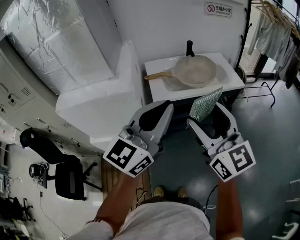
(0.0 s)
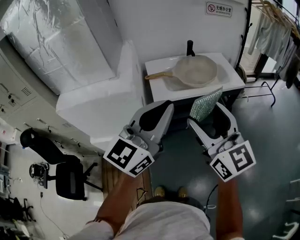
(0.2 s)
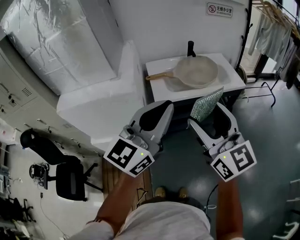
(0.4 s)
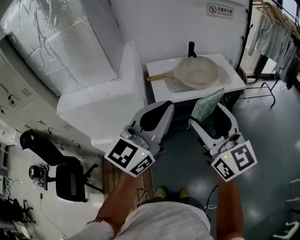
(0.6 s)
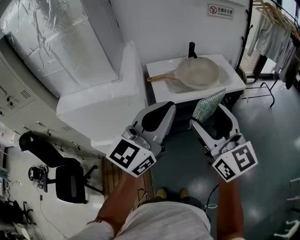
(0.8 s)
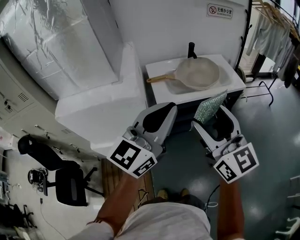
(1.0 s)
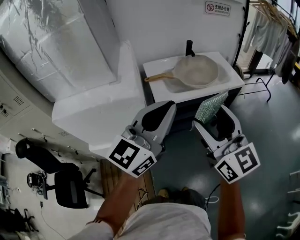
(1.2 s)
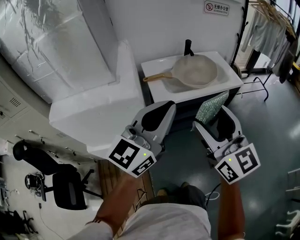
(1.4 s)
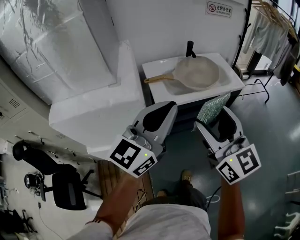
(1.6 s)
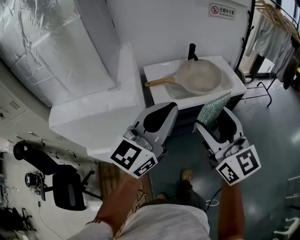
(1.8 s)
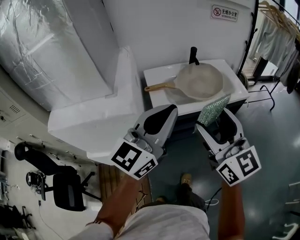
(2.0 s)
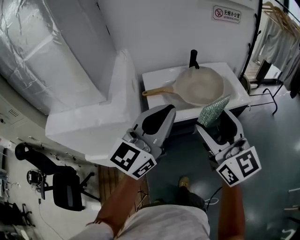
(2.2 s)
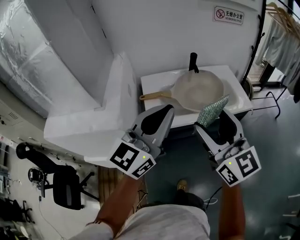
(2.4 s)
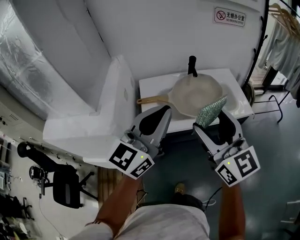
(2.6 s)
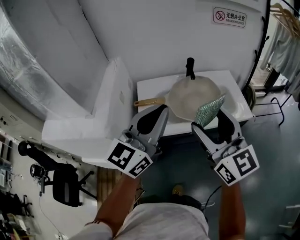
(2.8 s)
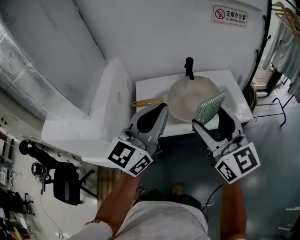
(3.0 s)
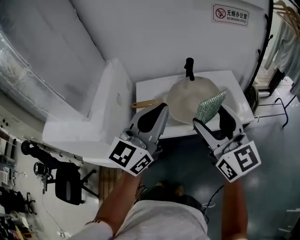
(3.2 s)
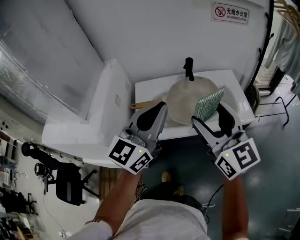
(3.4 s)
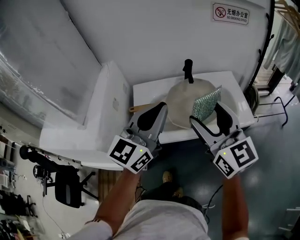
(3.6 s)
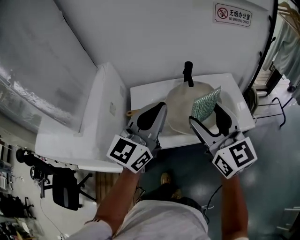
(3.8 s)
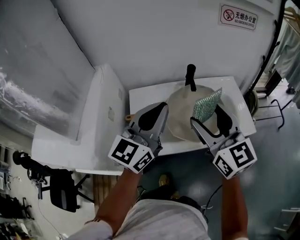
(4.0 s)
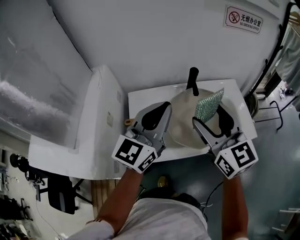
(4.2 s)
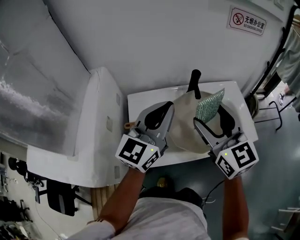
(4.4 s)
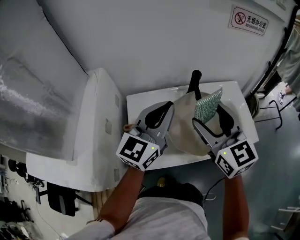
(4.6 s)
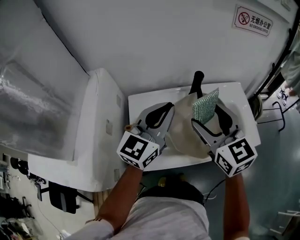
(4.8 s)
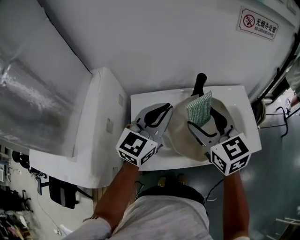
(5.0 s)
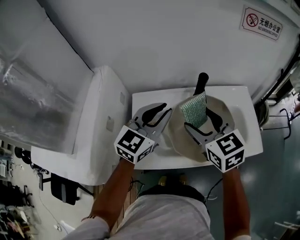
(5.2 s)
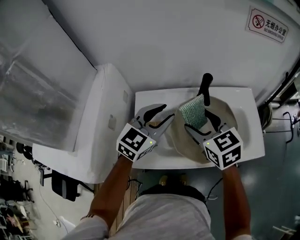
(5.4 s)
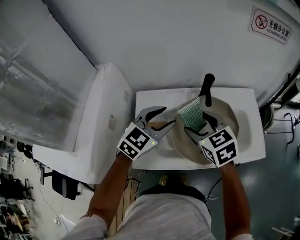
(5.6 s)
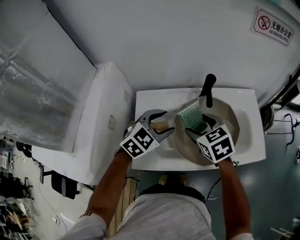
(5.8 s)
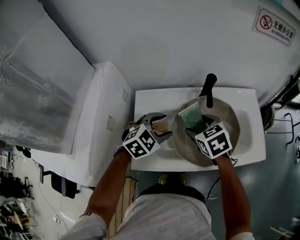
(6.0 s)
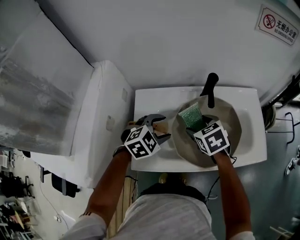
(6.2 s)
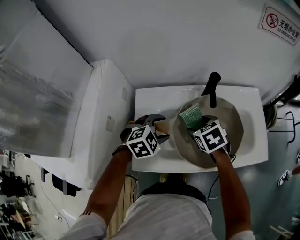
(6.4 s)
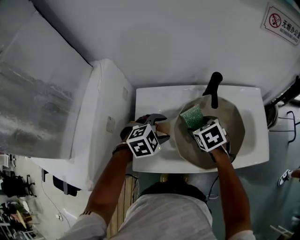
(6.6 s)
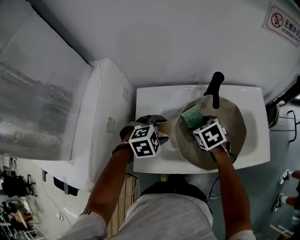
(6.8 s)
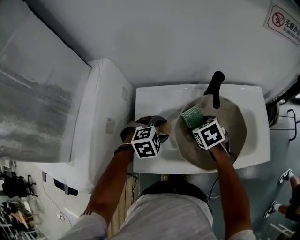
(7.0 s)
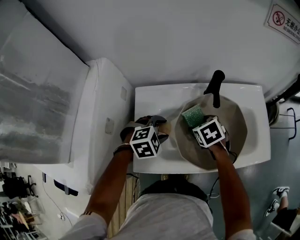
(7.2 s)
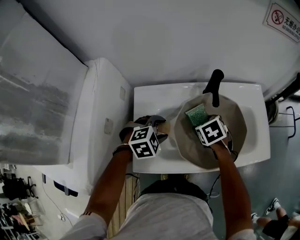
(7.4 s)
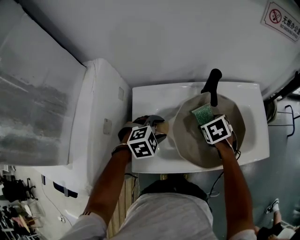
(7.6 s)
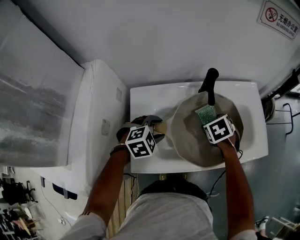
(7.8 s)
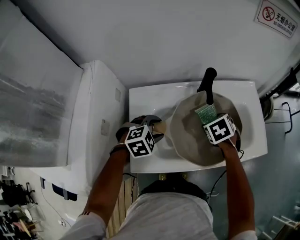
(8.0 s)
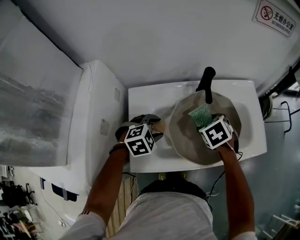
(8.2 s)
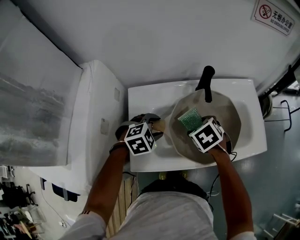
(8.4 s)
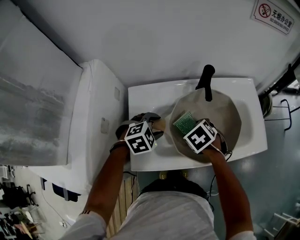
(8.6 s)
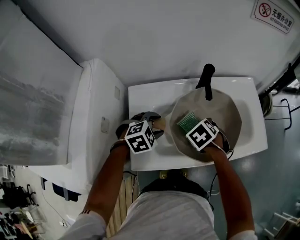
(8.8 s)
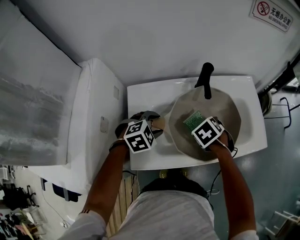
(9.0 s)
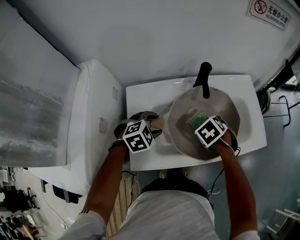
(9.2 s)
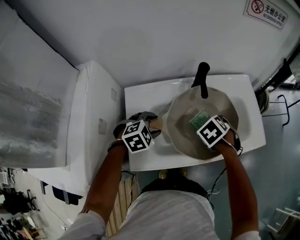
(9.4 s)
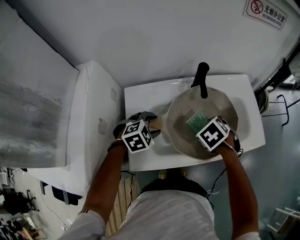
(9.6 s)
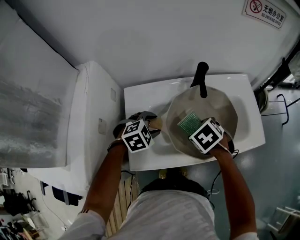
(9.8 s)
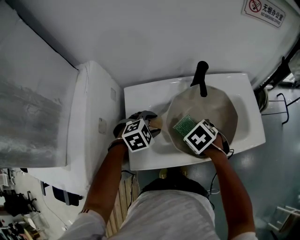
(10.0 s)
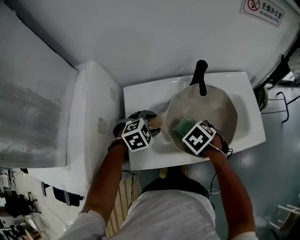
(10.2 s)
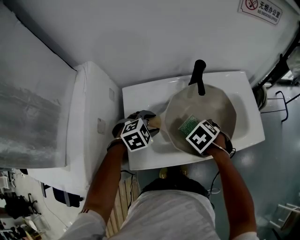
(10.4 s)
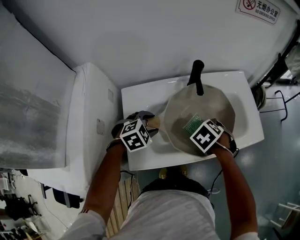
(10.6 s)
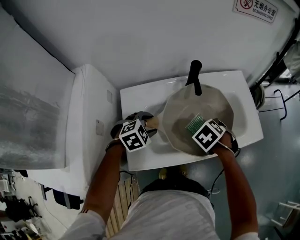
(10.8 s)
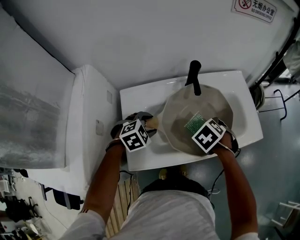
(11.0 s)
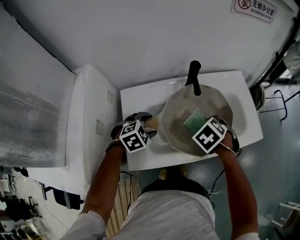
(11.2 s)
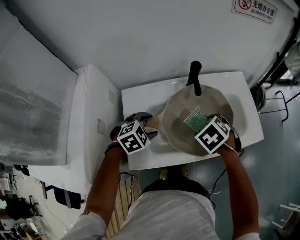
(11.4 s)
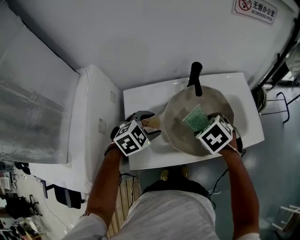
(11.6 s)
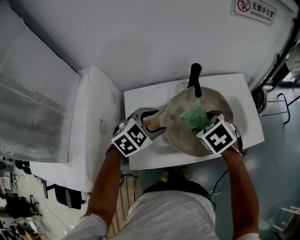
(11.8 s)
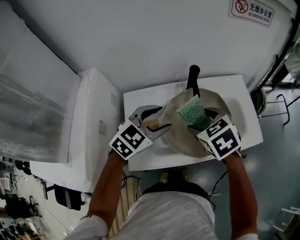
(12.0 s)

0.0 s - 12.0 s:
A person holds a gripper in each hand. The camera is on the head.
0.0 s - 1.6 s: The right gripper changes place by about 5 cm; the left gripper goes about 5 cm to the left and forward.
1.6 s - 3.0 s: The two grippers go roughly 25 cm forward and to the right.
3.0 s - 4.4 s: Both grippers move forward, some 20 cm.
4.4 s - 6.0 s: The right gripper moves downward and forward, about 20 cm, and points its fingers roughly 40 degrees further downward; the left gripper shifts about 20 cm downward, angles its fingers downward, by roughly 50 degrees, and opens its fingers.
6.0 s - 7.6 s: The left gripper is displaced downward by some 5 cm. The right gripper goes approximately 10 cm downward and to the right, and rotates some 20 degrees.
7.6 s - 9.0 s: The right gripper shifts by roughly 5 cm.
9.0 s - 10.4 s: There are only small adjustments of the grippers.
10.4 s - 12.0 s: The two grippers go about 15 cm upward. The right gripper changes its angle by some 30 degrees. Meanwhile the left gripper rotates about 30 degrees.

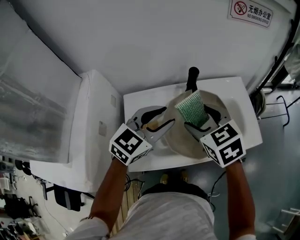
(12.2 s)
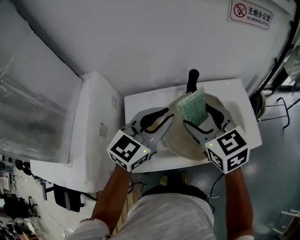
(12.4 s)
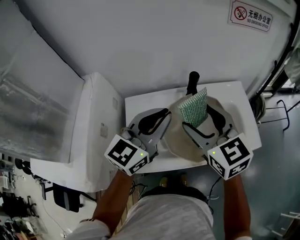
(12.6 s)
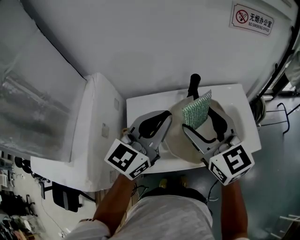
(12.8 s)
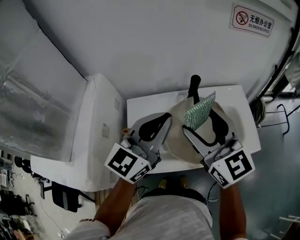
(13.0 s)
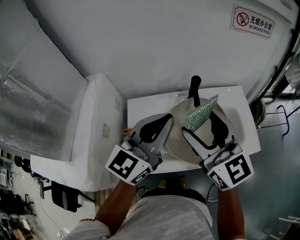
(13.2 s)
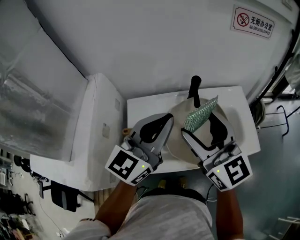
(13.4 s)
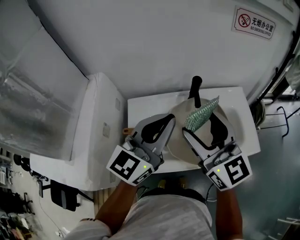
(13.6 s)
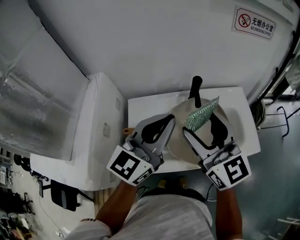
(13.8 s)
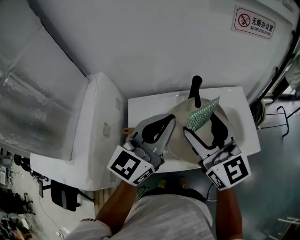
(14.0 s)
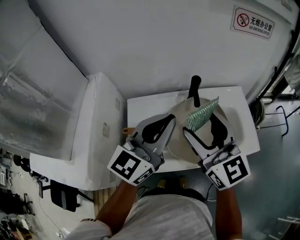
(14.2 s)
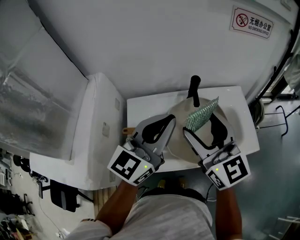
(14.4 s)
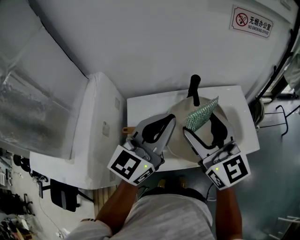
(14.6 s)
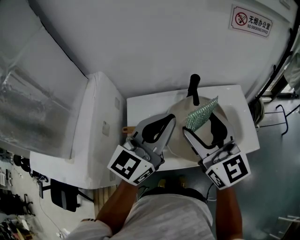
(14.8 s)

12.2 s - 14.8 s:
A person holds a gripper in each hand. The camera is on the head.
12.2 s - 13.4 s: Both grippers move upward, approximately 10 cm. The right gripper points its fingers roughly 40 degrees further upward. Meanwhile the left gripper rotates roughly 30 degrees, and closes.
13.4 s - 14.8 s: Neither gripper changes place.

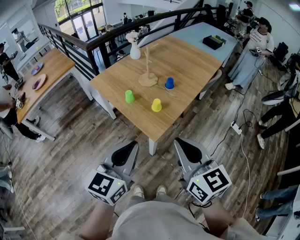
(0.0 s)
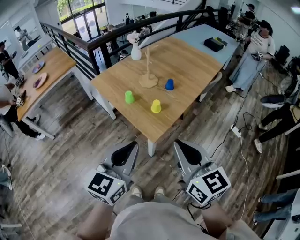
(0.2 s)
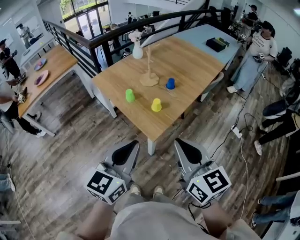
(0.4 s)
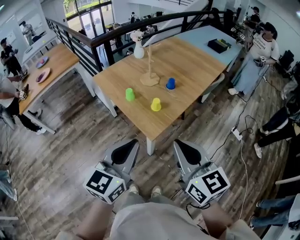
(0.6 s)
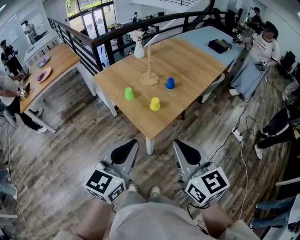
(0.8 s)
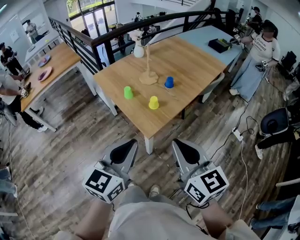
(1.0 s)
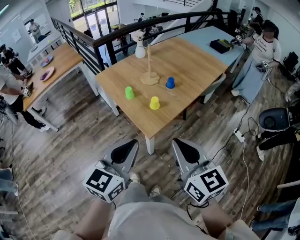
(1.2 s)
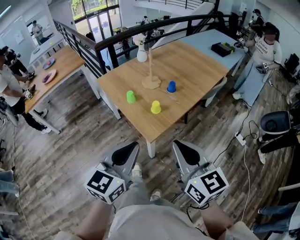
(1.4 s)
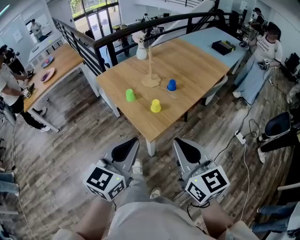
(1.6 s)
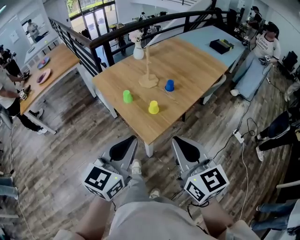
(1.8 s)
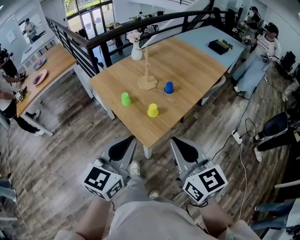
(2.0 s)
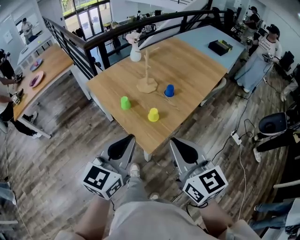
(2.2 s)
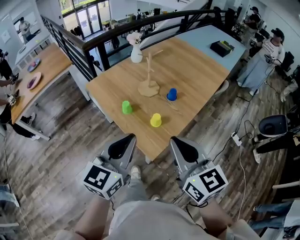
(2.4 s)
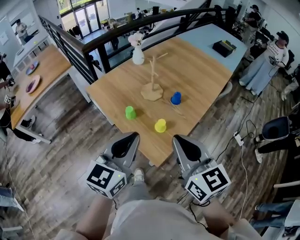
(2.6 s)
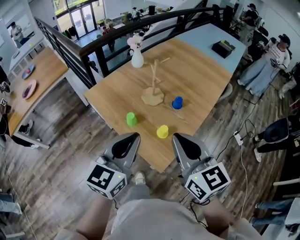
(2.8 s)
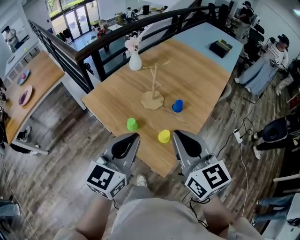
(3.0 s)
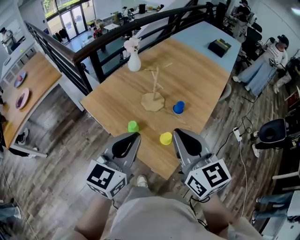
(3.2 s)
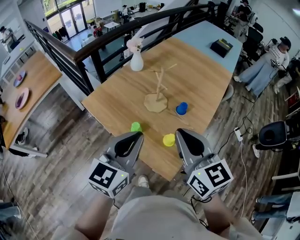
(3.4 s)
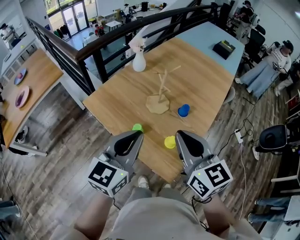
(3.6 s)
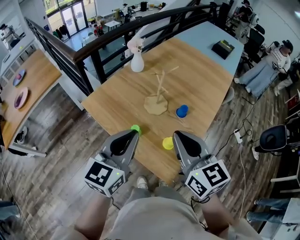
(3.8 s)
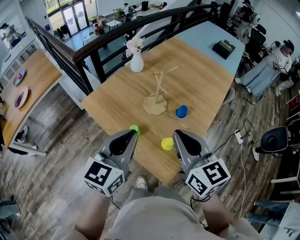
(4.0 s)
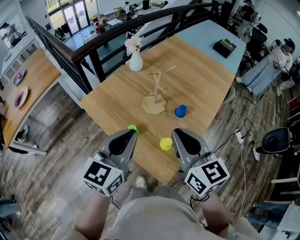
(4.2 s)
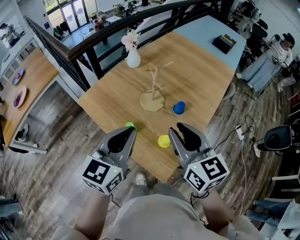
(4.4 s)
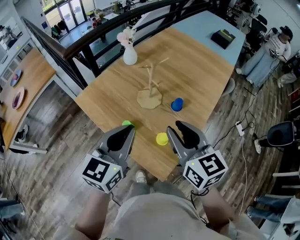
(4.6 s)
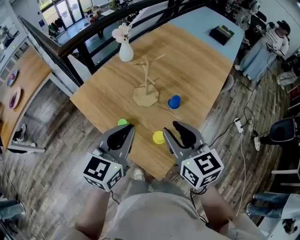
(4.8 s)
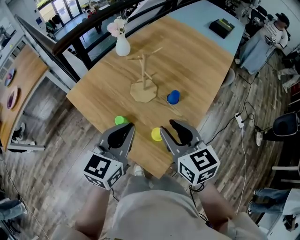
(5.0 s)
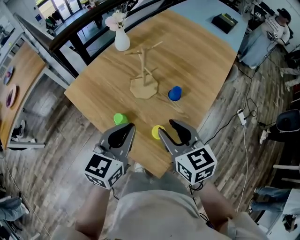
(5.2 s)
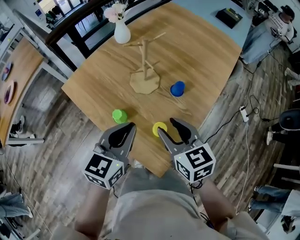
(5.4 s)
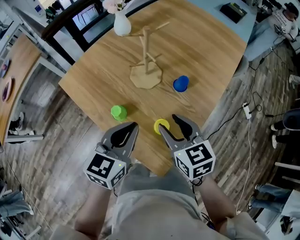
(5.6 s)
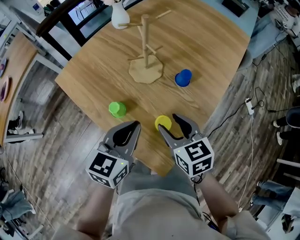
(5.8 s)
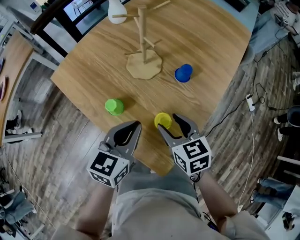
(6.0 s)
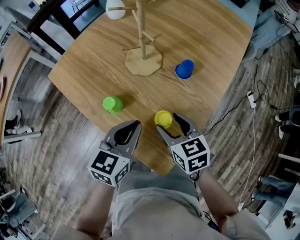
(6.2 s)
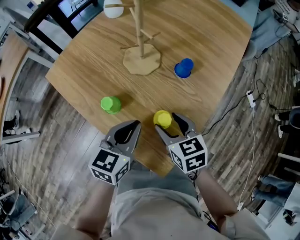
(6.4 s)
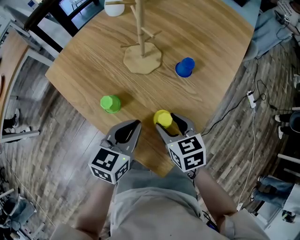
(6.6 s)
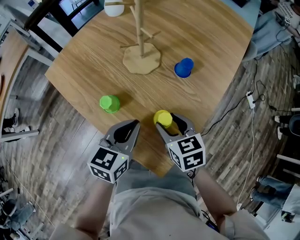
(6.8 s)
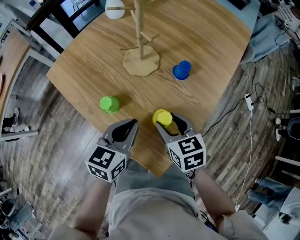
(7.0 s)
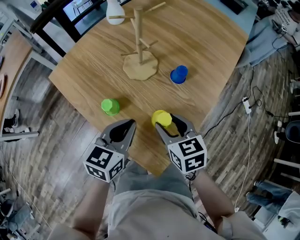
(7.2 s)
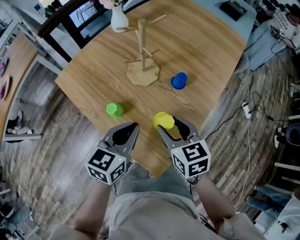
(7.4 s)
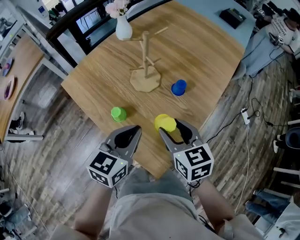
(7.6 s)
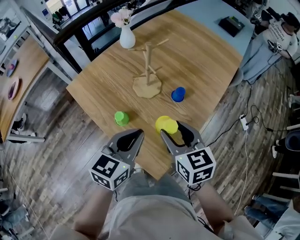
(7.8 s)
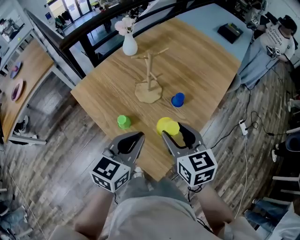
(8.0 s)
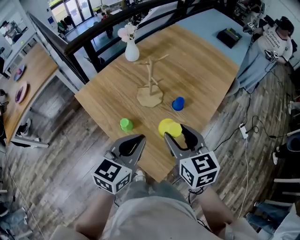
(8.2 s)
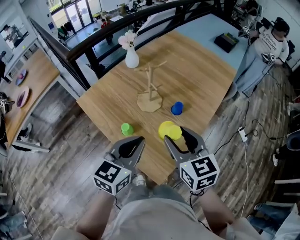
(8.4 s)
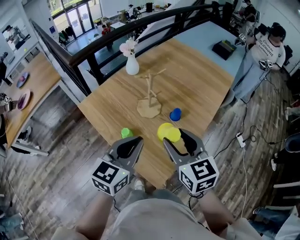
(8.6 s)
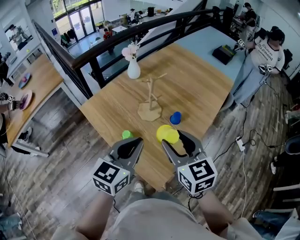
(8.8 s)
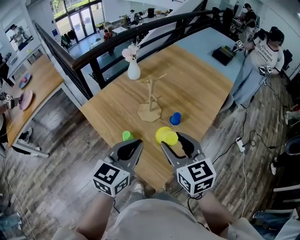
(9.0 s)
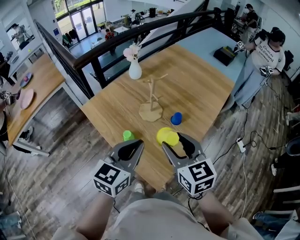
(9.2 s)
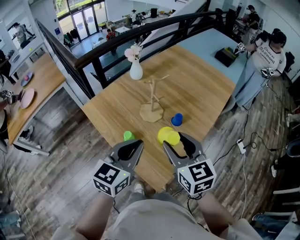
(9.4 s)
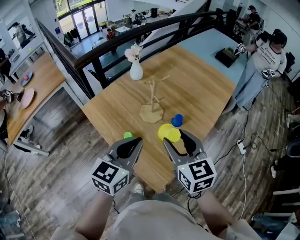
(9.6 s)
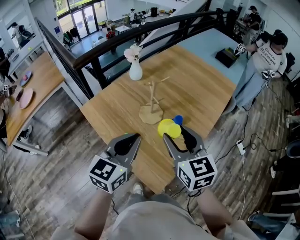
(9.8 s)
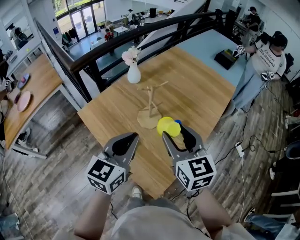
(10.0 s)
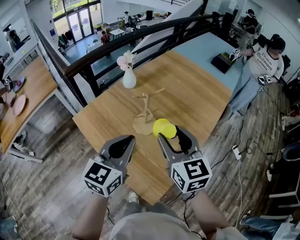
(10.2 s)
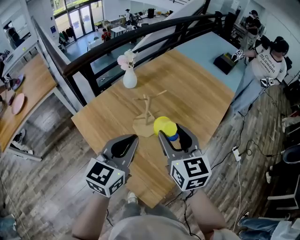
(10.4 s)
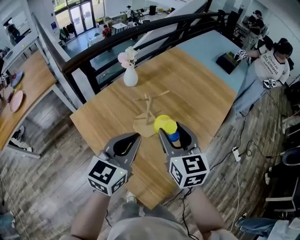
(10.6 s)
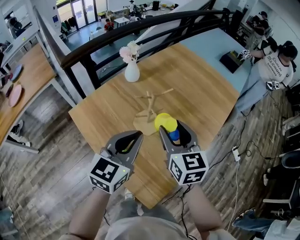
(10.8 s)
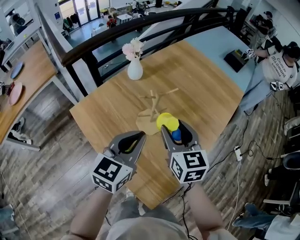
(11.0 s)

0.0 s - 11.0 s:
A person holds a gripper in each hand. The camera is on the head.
0.0 s - 1.6 s: Both grippers travel together to the right, approximately 5 cm.
1.6 s - 3.2 s: Both grippers move forward and to the left, roughly 35 cm.
3.2 s - 4.8 s: The right gripper is displaced downward and forward by some 10 cm, and opens its fingers. The left gripper moves forward and downward, approximately 10 cm.
4.8 s - 6.2 s: Both grippers move downward, approximately 25 cm. The right gripper swivels roughly 20 degrees, and opens.
6.2 s - 7.8 s: The two grippers go about 15 cm upward.
7.8 s - 9.4 s: The grippers both shift upward by roughly 15 cm.
9.4 s - 11.0 s: Both grippers move forward, about 20 cm.
